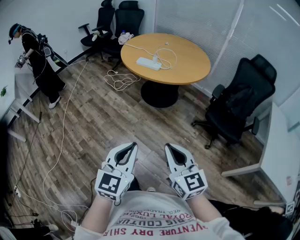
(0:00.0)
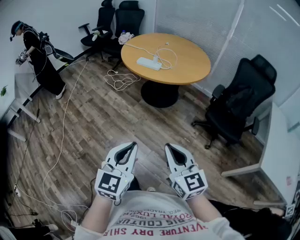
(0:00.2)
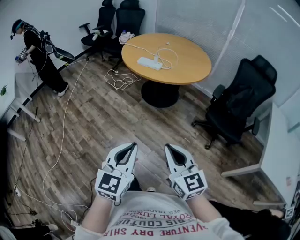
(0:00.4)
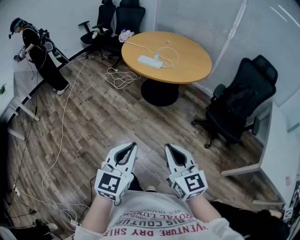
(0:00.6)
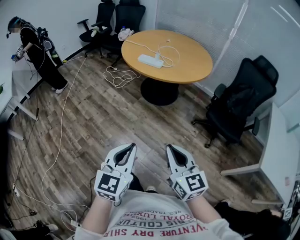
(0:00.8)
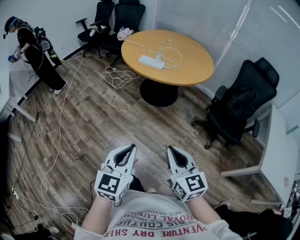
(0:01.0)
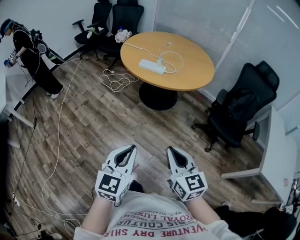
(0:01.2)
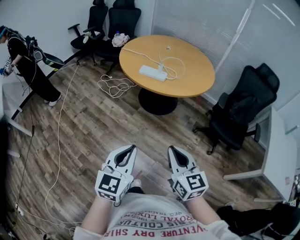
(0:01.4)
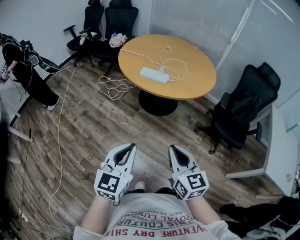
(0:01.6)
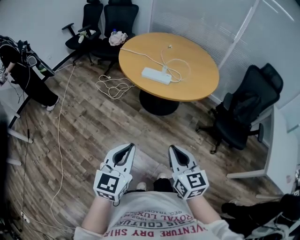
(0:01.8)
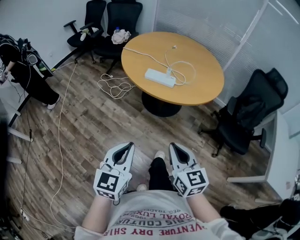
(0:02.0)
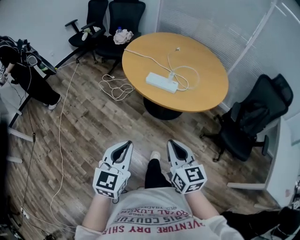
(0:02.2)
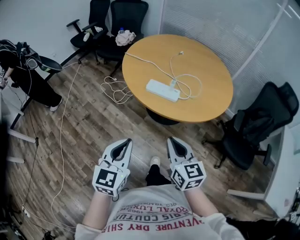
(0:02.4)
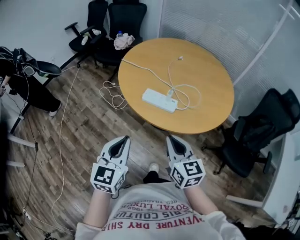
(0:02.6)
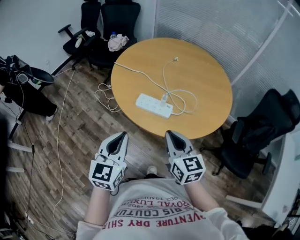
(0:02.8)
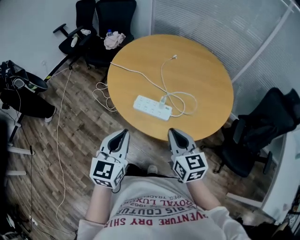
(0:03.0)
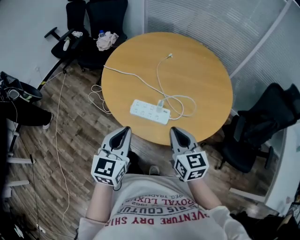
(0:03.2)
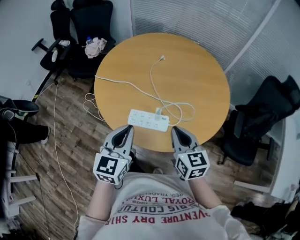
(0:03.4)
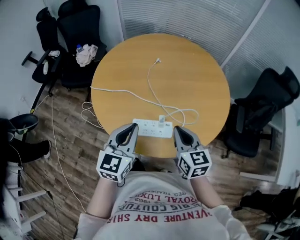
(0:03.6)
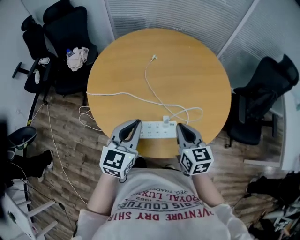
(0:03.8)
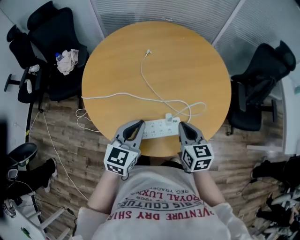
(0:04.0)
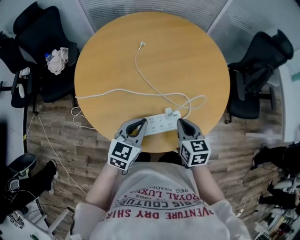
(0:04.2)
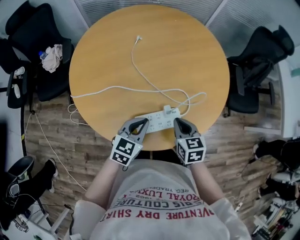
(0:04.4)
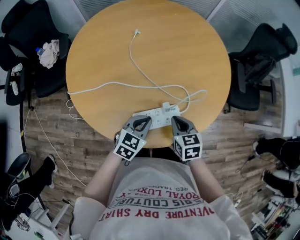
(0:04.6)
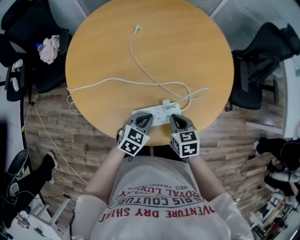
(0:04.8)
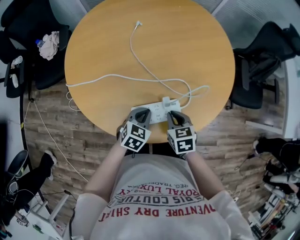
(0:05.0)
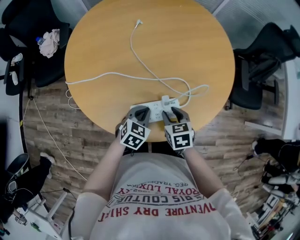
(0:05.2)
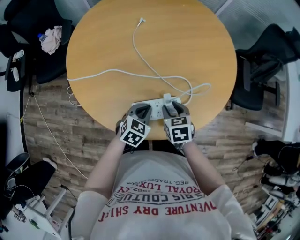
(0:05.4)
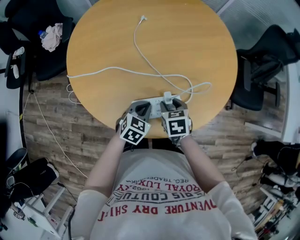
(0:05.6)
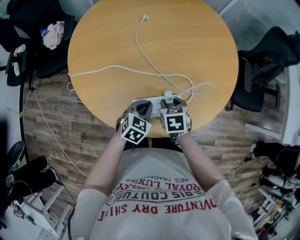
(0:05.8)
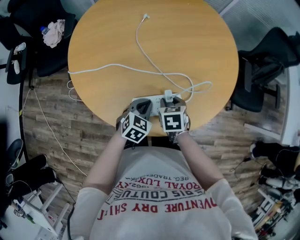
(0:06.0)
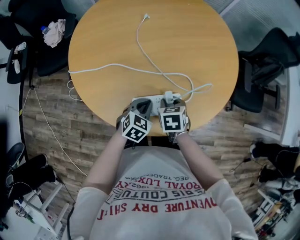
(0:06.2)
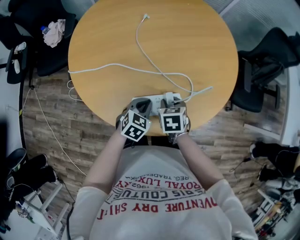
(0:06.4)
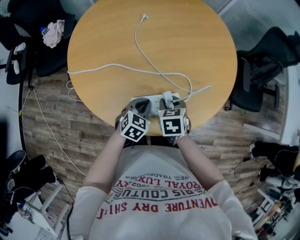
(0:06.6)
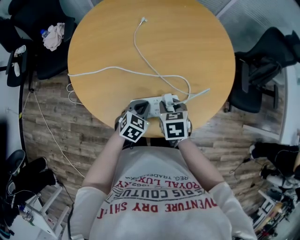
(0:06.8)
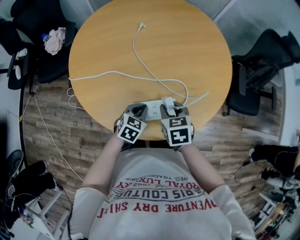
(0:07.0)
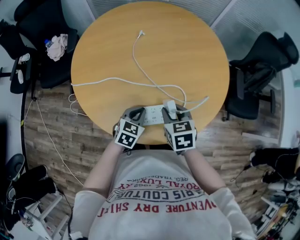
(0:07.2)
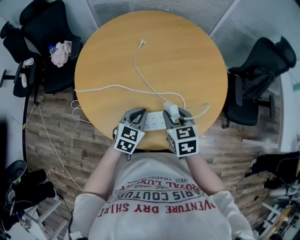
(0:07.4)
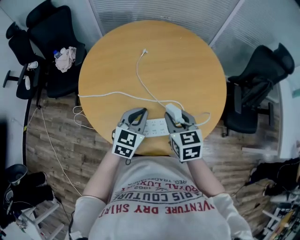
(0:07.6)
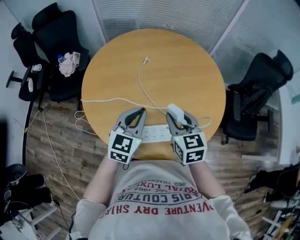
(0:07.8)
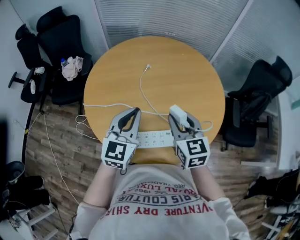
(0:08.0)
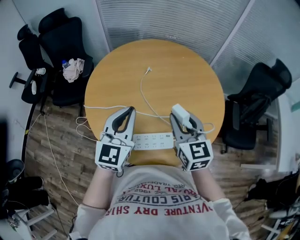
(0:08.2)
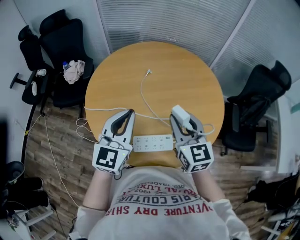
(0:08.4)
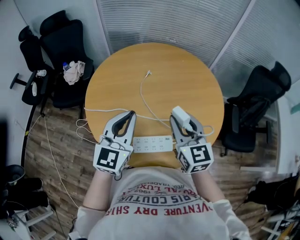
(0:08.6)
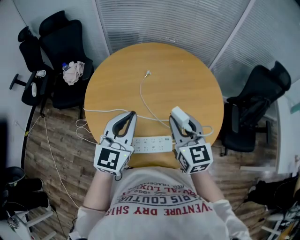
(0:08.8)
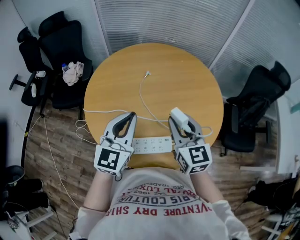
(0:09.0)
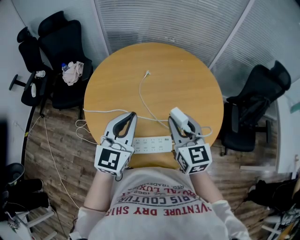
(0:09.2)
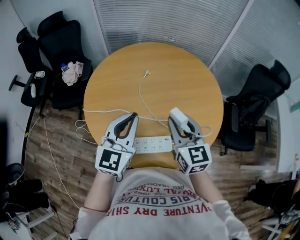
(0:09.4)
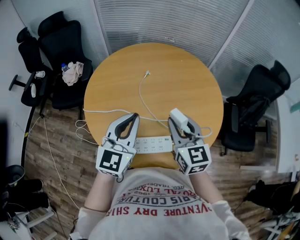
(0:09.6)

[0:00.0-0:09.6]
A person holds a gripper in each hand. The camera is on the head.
0:00.0 to 0:01.6: Both grippers travel together forward and to the left, roughly 20 cm.
0:01.6 to 0:03.2: The two grippers travel together, forward, roughly 50 cm.
0:03.2 to 0:04.8: The grippers both shift downward by roughly 20 cm. The right gripper angles its fingers downward, by roughly 30 degrees. The left gripper changes its angle by approximately 60 degrees.
0:04.8 to 0:06.4: The right gripper opens.
0:06.4 to 0:08.0: Both grippers move upward, some 25 cm. The left gripper angles its fingers upward, by roughly 40 degrees. Meanwhile the right gripper tips its fingers upward by some 40 degrees.
0:08.0 to 0:09.6: The grippers move only a little.

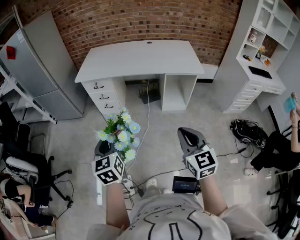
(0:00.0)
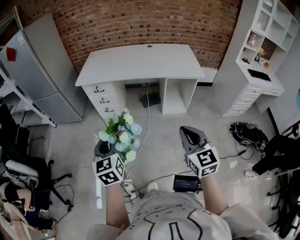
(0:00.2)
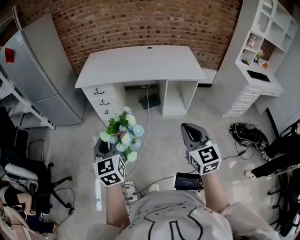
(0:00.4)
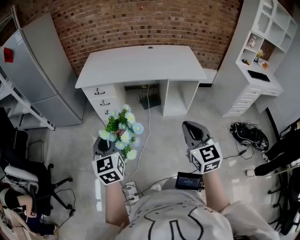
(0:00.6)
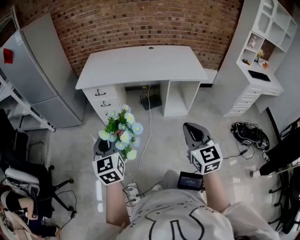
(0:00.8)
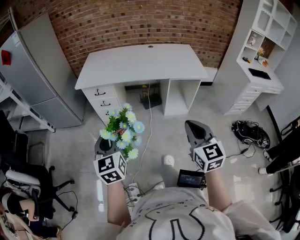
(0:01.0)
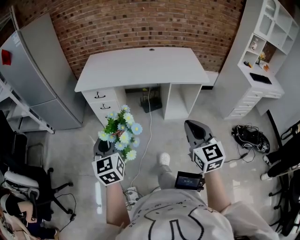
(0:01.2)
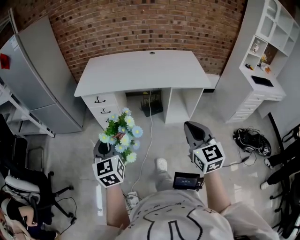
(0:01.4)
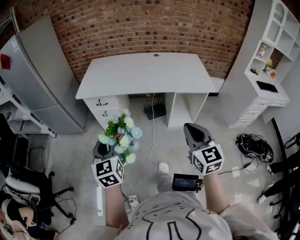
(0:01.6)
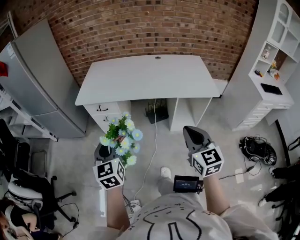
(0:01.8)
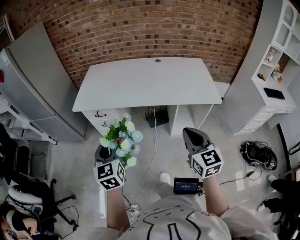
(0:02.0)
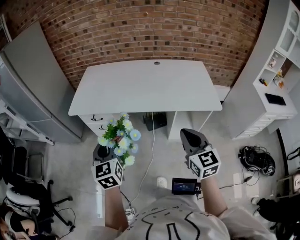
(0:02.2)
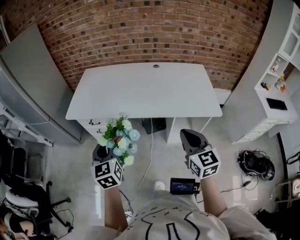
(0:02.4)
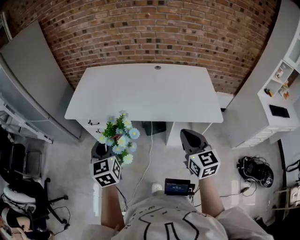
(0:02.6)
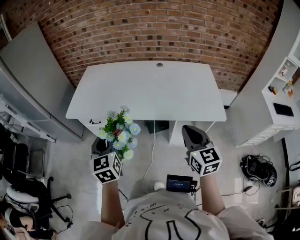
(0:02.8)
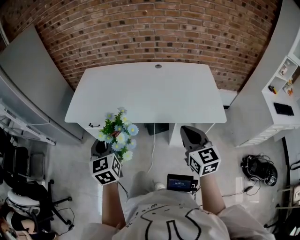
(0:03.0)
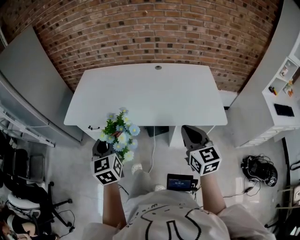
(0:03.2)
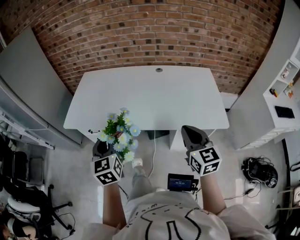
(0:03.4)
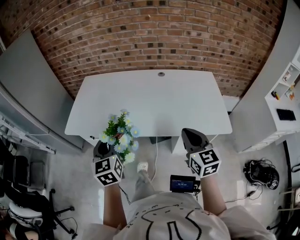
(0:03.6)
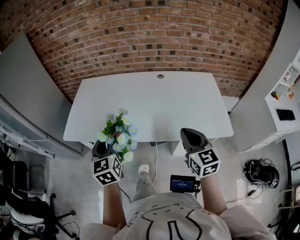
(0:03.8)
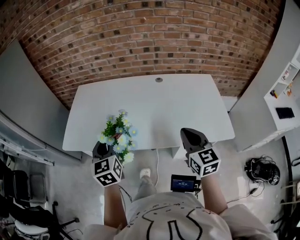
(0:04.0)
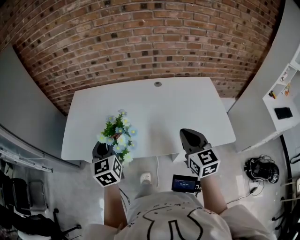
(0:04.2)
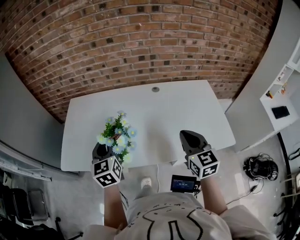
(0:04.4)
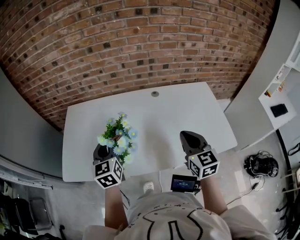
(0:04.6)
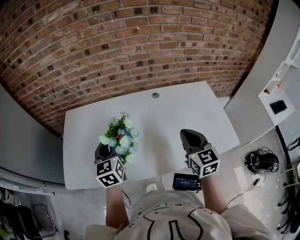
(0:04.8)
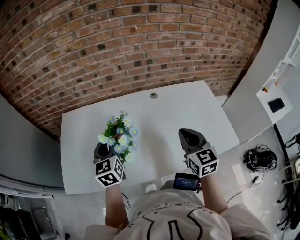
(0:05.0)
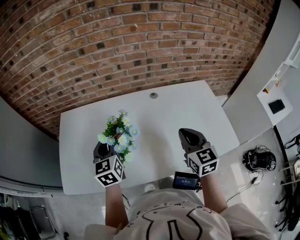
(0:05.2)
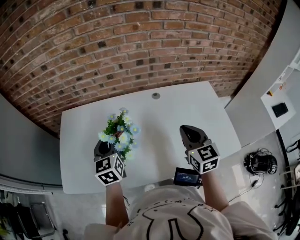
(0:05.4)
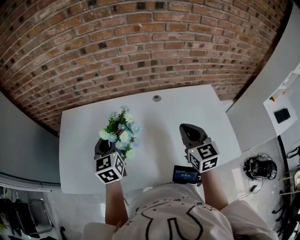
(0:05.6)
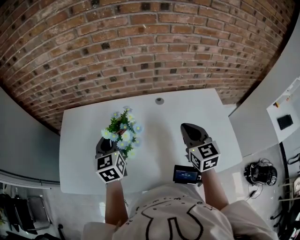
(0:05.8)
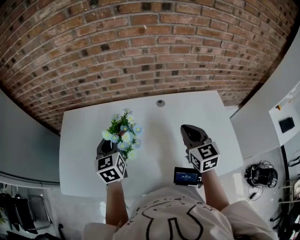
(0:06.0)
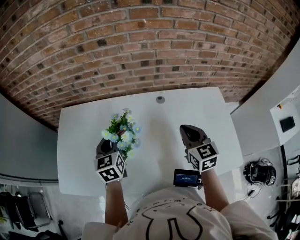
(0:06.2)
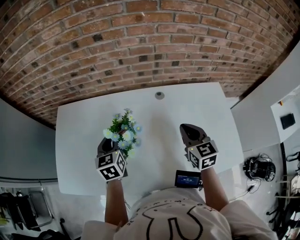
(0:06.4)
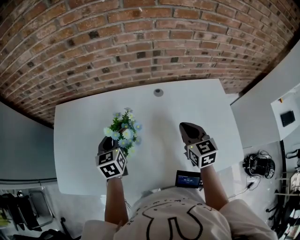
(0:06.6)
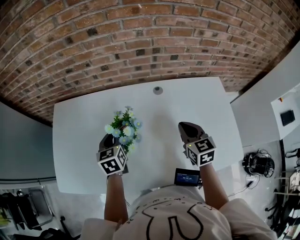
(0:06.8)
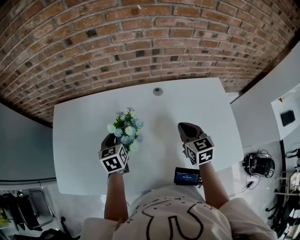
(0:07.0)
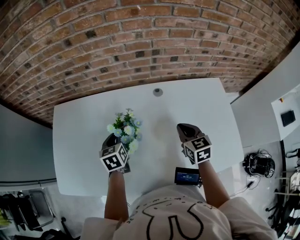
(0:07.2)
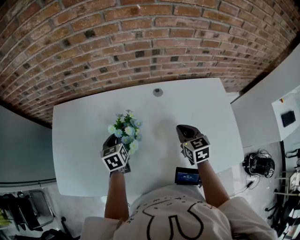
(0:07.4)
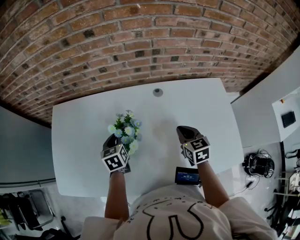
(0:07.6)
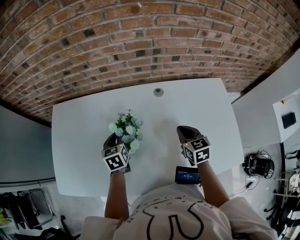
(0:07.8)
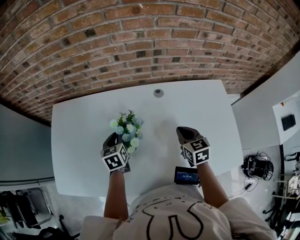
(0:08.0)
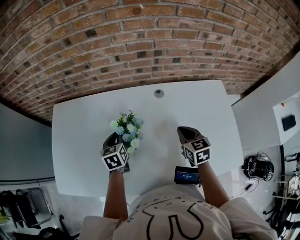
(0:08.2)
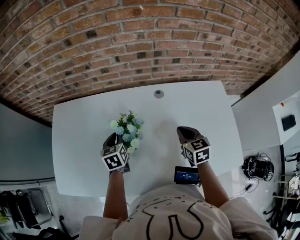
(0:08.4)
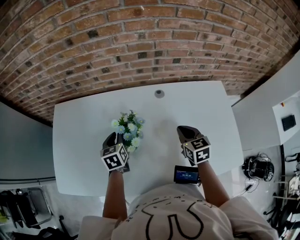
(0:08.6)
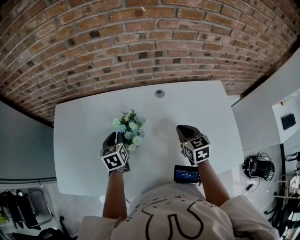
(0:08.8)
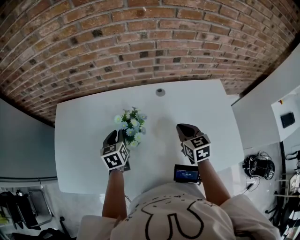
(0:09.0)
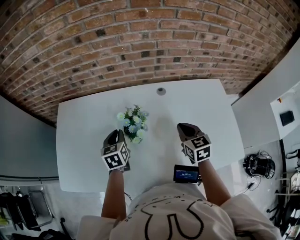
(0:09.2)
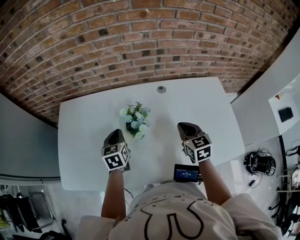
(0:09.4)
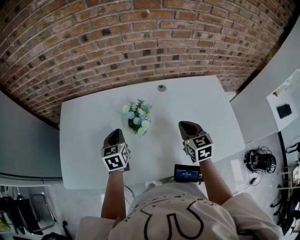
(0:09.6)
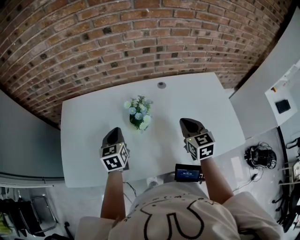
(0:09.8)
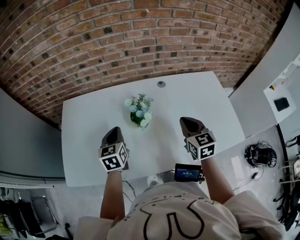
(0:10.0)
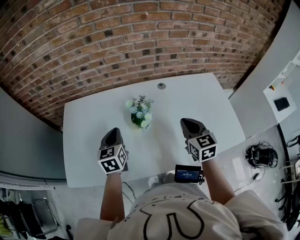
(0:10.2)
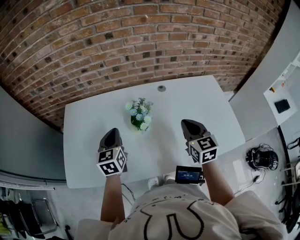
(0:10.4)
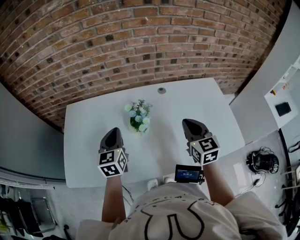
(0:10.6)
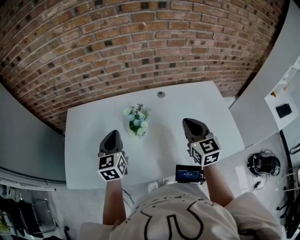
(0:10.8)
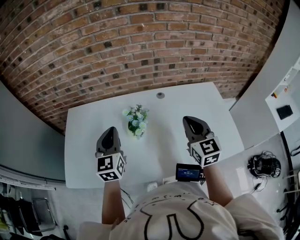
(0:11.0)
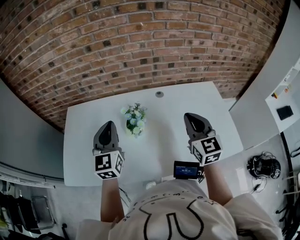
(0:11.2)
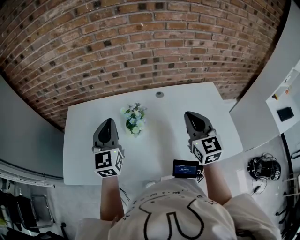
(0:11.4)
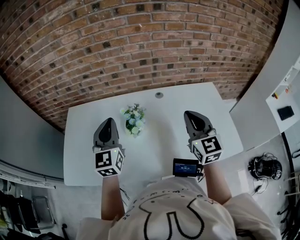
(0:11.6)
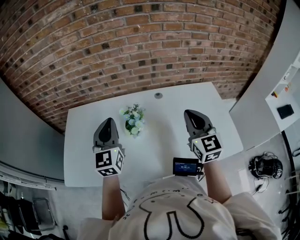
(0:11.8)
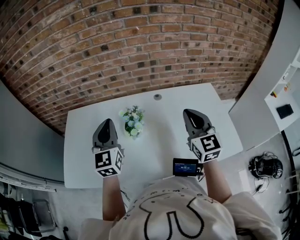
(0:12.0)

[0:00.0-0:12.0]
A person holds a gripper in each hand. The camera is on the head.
0:00.0 to 0:01.6: Both grippers travel together forward, roughly 20 cm.
0:01.6 to 0:03.0: The two grippers go approximately 30 cm forward and to the right.
0:03.0 to 0:04.4: The grippers both shift forward by roughly 25 cm.
0:04.4 to 0:06.0: Both grippers travel together forward, roughly 20 cm.
0:06.0 to 0:07.6: Both grippers travel together downward, about 15 cm.
0:07.6 to 0:09.0: The grippers stay close to where they were, moving slightly.
0:09.0 to 0:10.4: The left gripper heads upward, backward and to the left, covering approximately 15 cm, while the right gripper heads backward and upward, covering some 15 cm.
0:10.4 to 0:12.0: The two grippers go some 10 cm upward and to the right. The left gripper changes its angle by roughly 20 degrees.

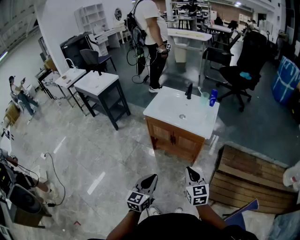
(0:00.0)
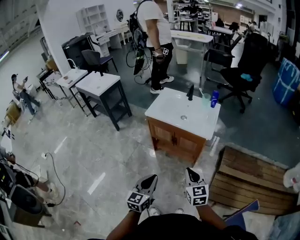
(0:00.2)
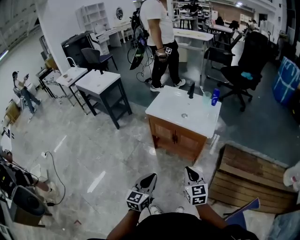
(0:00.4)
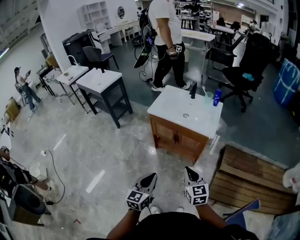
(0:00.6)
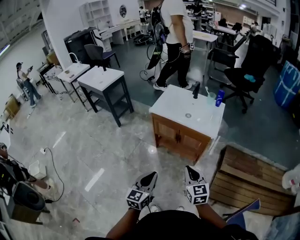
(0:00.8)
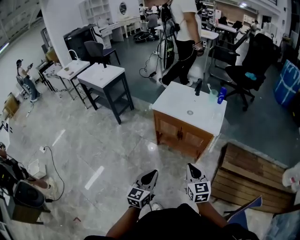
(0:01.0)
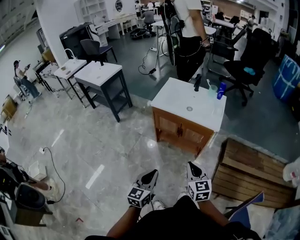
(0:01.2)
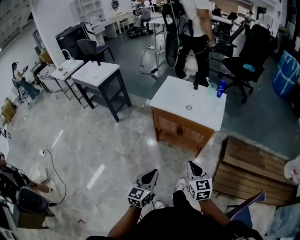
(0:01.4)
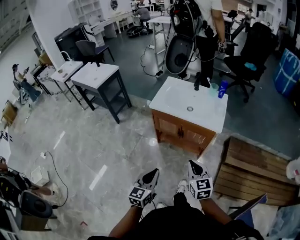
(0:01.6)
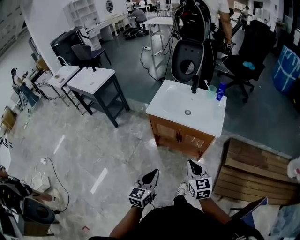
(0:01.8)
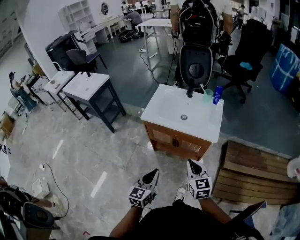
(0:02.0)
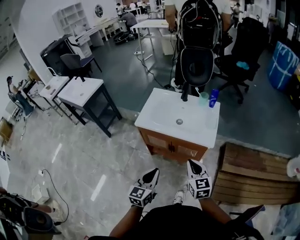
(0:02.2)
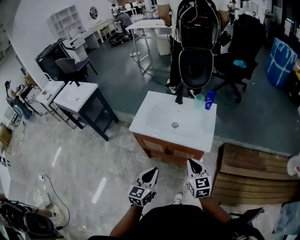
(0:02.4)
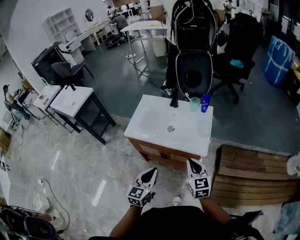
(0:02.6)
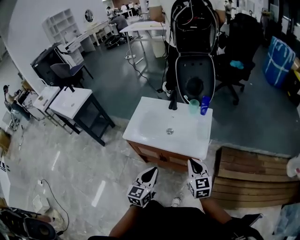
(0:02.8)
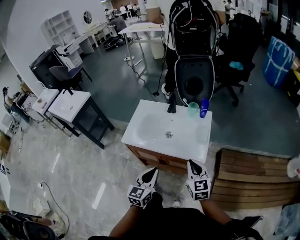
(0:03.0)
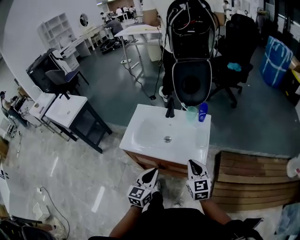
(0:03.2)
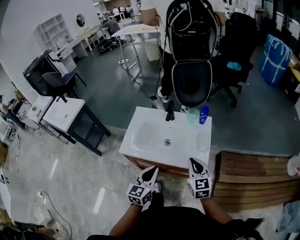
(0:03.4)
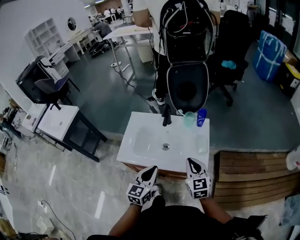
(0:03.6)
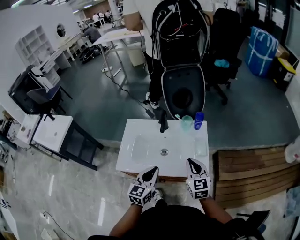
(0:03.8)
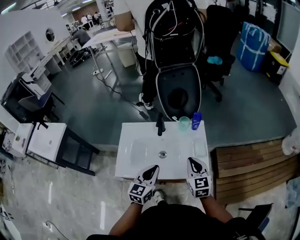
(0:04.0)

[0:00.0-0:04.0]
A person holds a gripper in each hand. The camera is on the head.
0:00.0 to 0:01.4: Both grippers move to the left, roughly 5 cm.
0:01.4 to 0:02.6: The right gripper shifts about 25 cm forward and to the right; the left gripper shifts roughly 25 cm forward.
0:02.6 to 0:04.0: The grippers both shift forward by approximately 20 cm.
